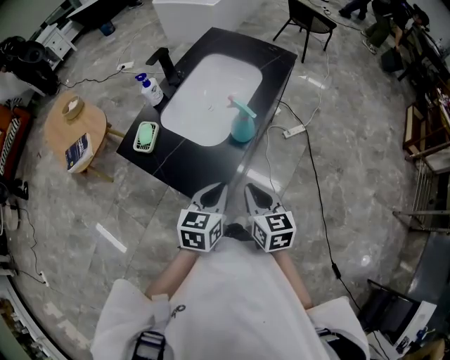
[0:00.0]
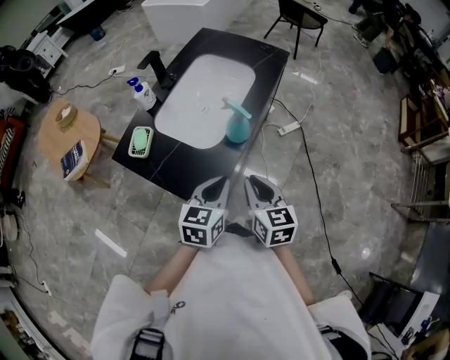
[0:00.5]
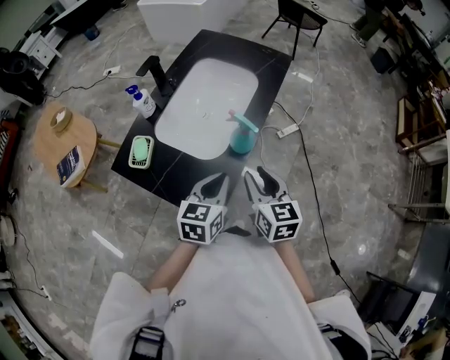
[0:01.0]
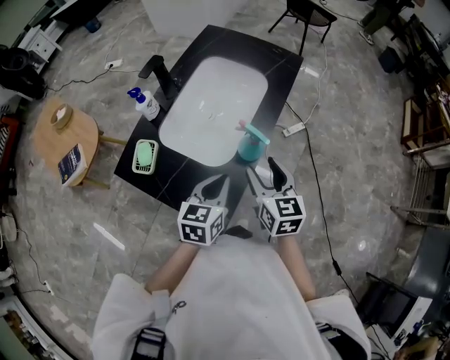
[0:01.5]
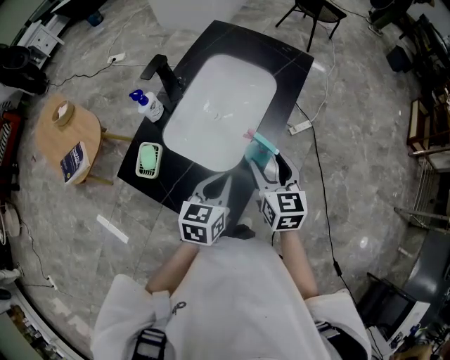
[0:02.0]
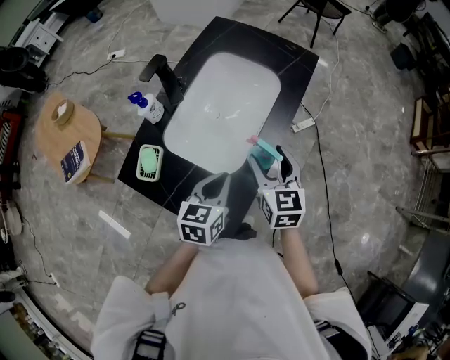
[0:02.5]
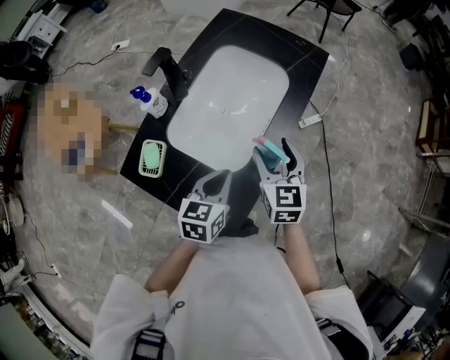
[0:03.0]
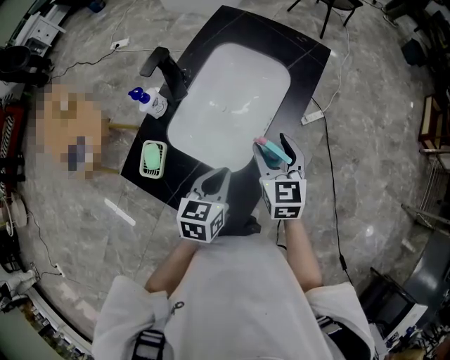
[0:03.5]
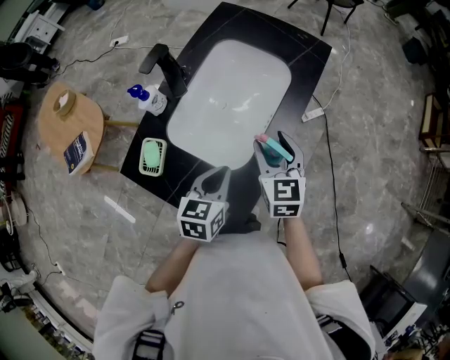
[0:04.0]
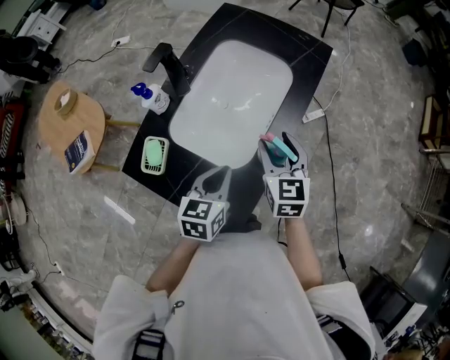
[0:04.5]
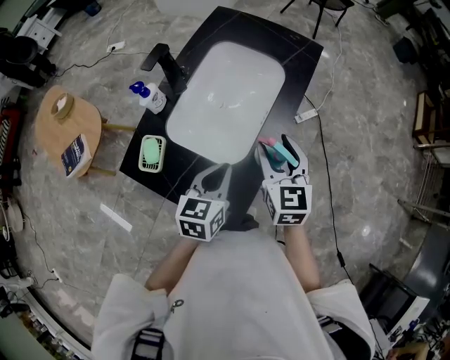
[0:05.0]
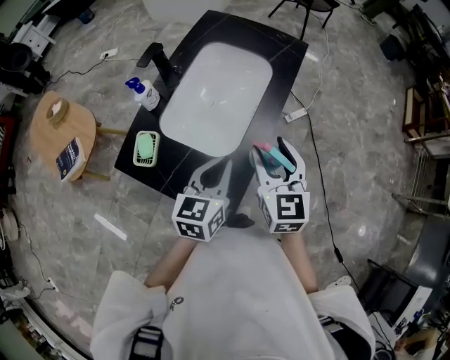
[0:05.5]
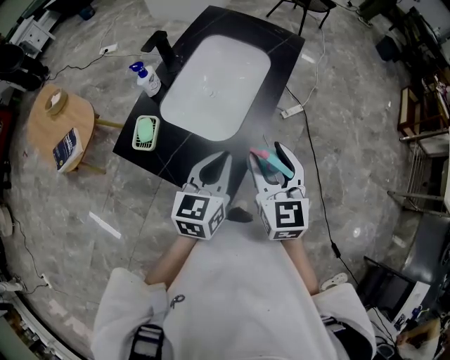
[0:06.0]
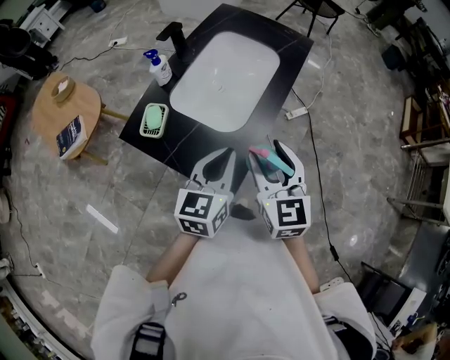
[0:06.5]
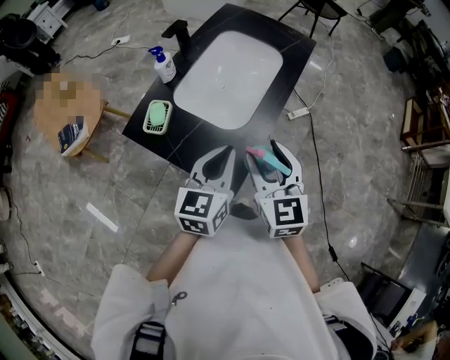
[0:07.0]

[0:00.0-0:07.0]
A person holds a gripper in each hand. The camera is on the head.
0:00.0 to 0:02.0: Both grippers move forward, roughly 15 cm. The right gripper opens up.
0:02.0 to 0:03.5: The right gripper goes roughly 5 cm forward.
0:03.5 to 0:05.0: The right gripper shifts by roughly 5 cm.
0:05.0 to 0:07.0: The left gripper goes some 15 cm backward and upward; the right gripper goes approximately 15 cm backward.

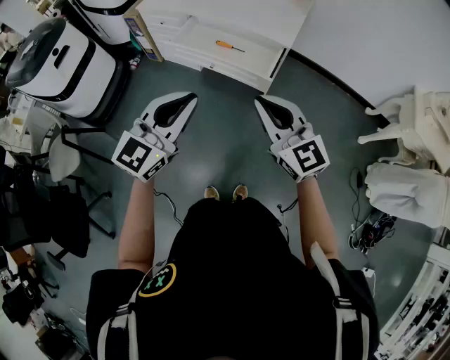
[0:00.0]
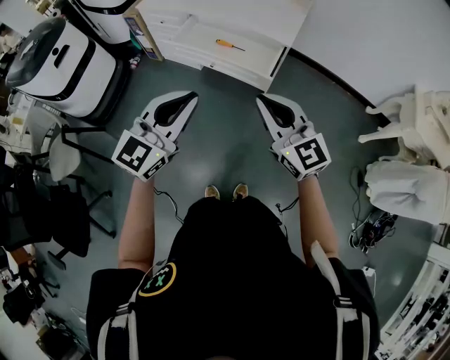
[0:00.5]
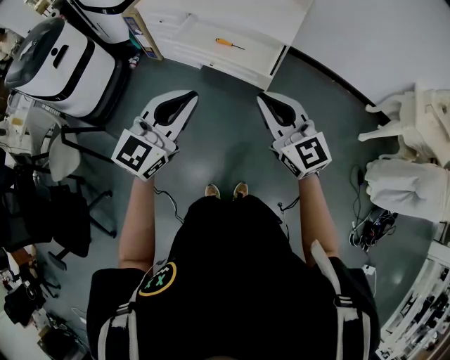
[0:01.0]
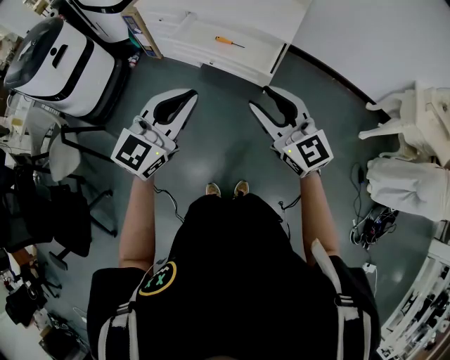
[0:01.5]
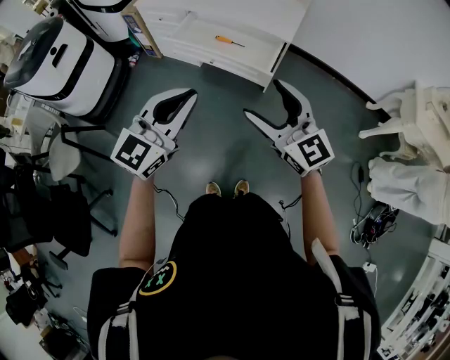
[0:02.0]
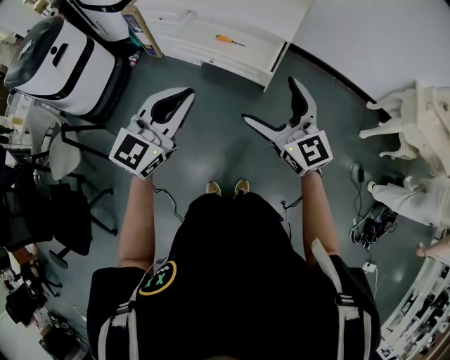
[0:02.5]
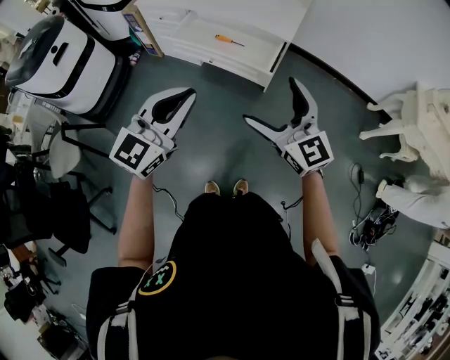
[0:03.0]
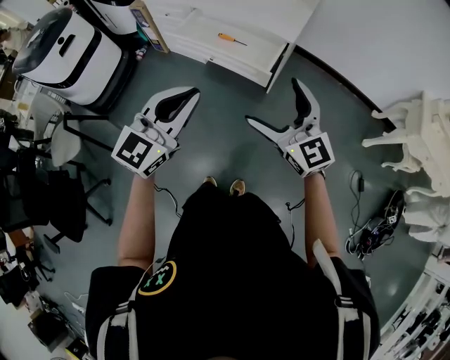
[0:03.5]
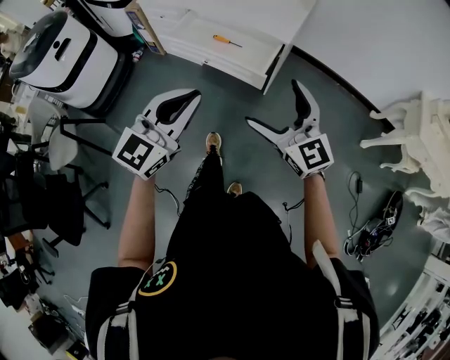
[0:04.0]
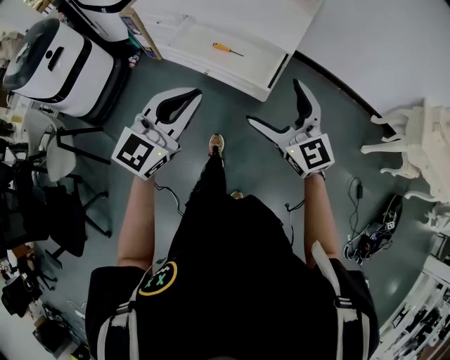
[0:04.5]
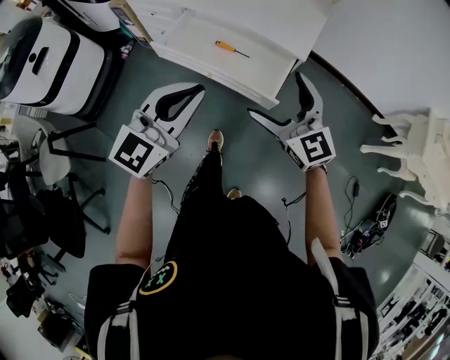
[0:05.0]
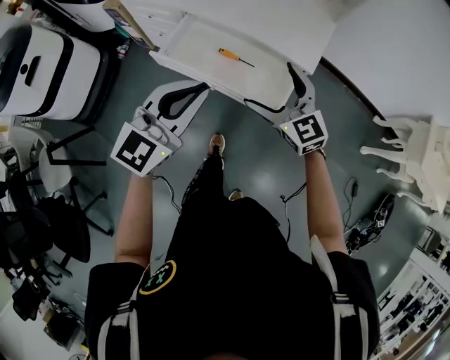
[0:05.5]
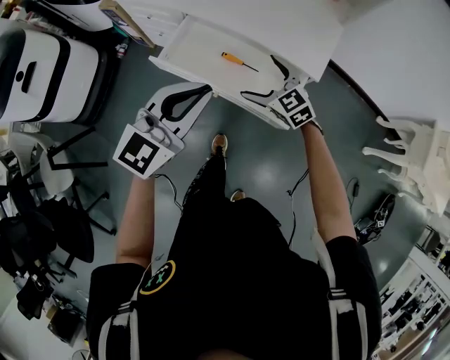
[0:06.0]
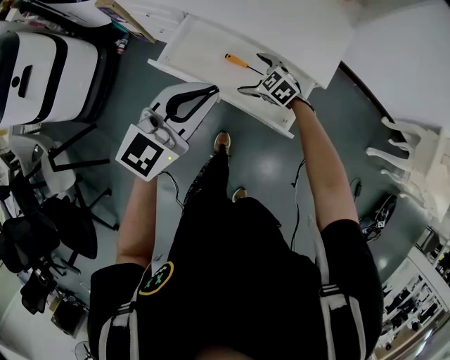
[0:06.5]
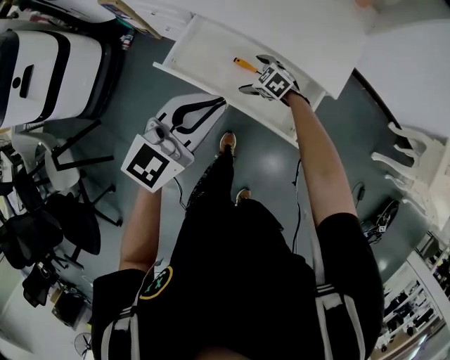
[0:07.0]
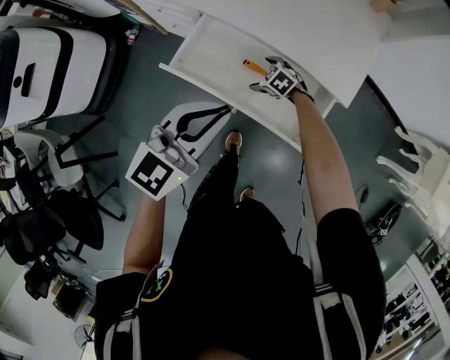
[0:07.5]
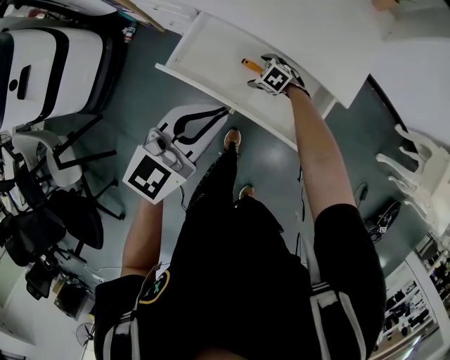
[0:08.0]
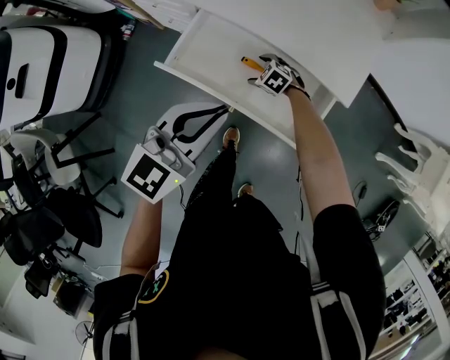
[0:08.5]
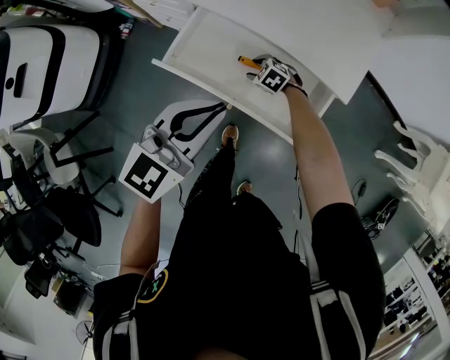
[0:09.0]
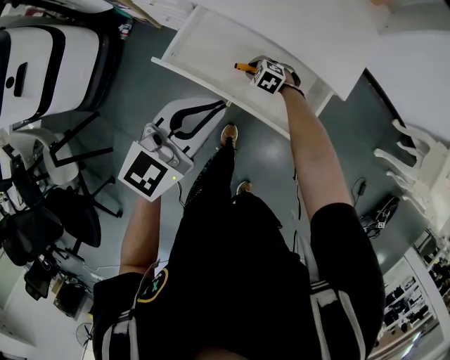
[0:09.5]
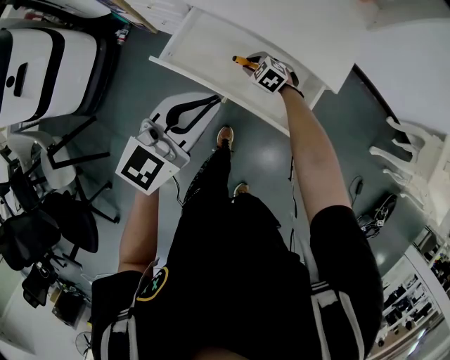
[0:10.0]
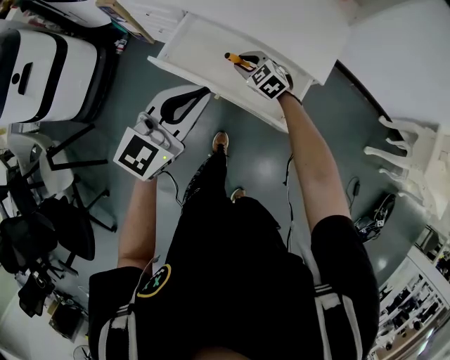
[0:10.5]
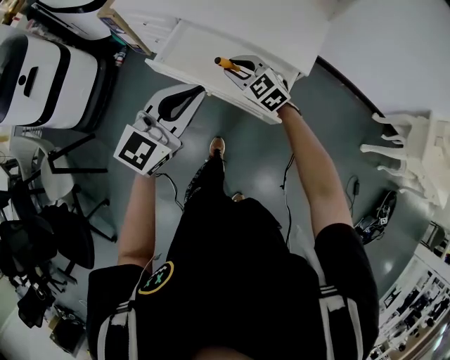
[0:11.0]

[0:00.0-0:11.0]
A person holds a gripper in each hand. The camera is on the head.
0:00.0 to 0:02.0: The right gripper opens.
0:02.0 to 0:03.5: The grippers both shift to the right by roughly 5 cm.
0:03.5 to 0:05.5: The grippers both shift forward by roughly 35 cm.
0:05.5 to 0:07.5: The left gripper is displaced forward and downward by approximately 15 cm; the right gripper is displaced downward and forward by approximately 40 cm, and tips its fingers downward by approximately 50 degrees.
0:07.5 to 0:09.0: The right gripper closes up.
0:09.0 to 0:11.0: The left gripper shifts roughly 15 cm backward and upward; the right gripper shifts roughly 30 cm upward and backward, and tilts its fingers roughly 30 degrees upward.

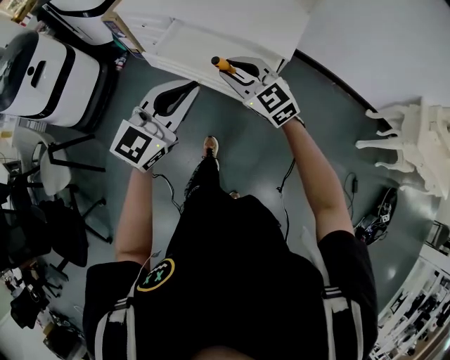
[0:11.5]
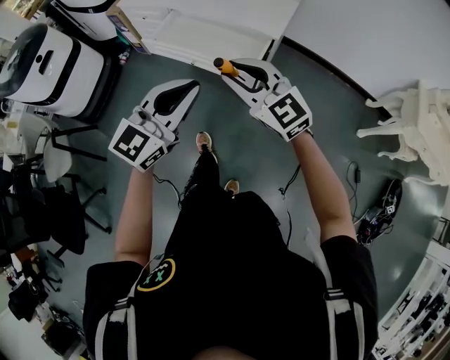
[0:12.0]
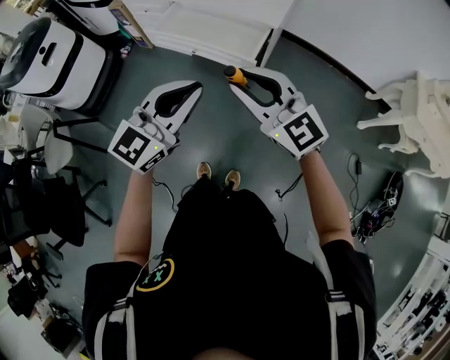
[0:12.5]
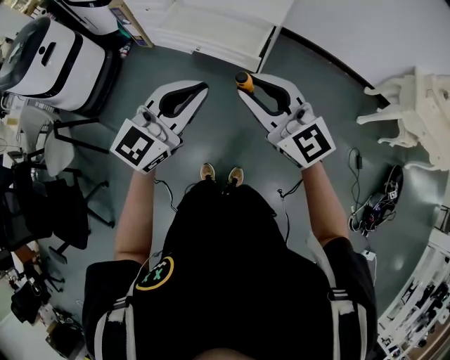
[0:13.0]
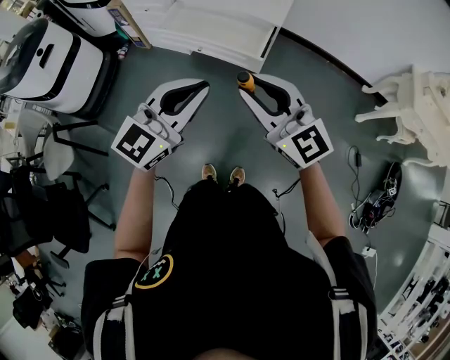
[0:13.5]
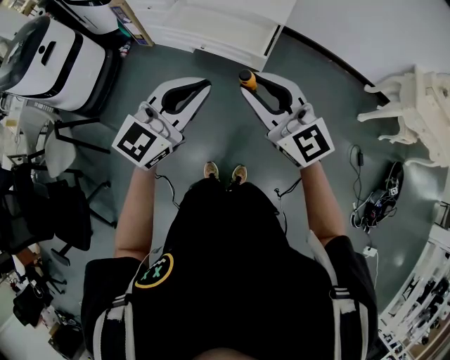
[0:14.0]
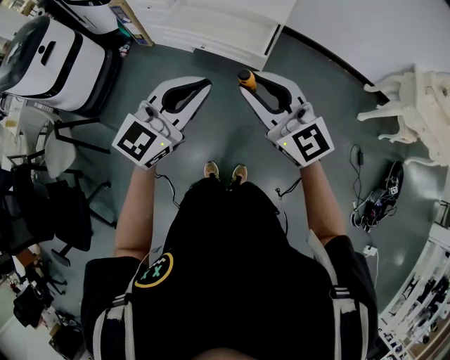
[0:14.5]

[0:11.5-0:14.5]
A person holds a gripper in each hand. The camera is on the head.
0:11.5 to 0:13.0: Both grippers travel together backward, roughly 25 cm.
0:13.0 to 0:14.5: The grippers make only small movements.

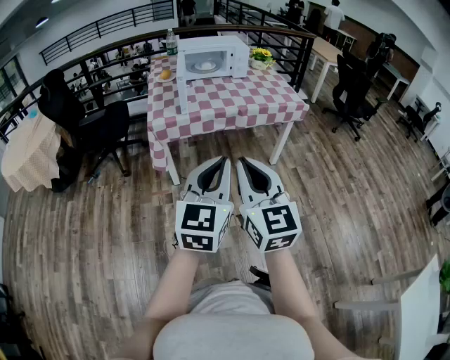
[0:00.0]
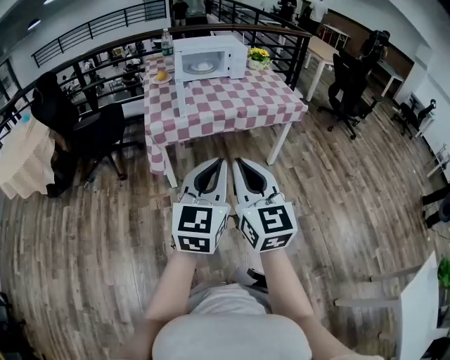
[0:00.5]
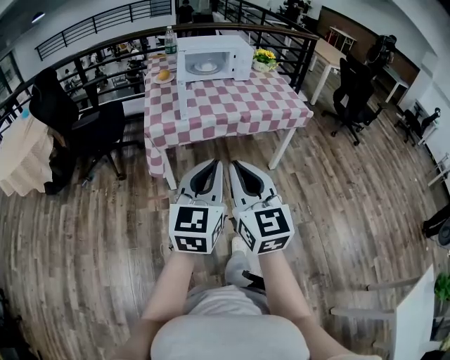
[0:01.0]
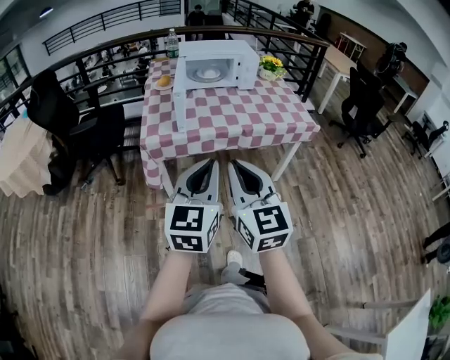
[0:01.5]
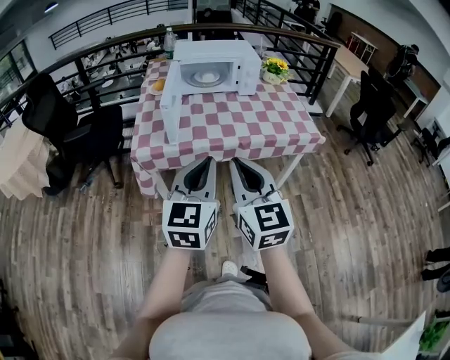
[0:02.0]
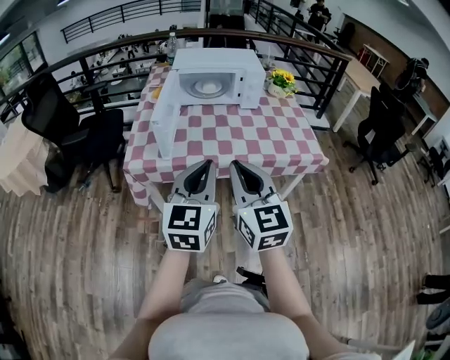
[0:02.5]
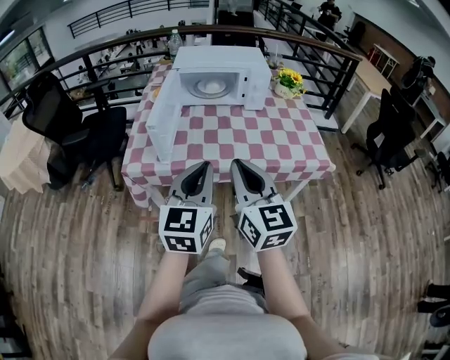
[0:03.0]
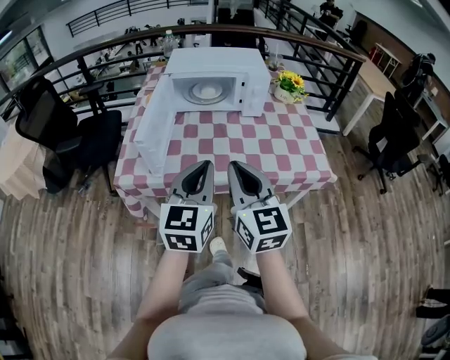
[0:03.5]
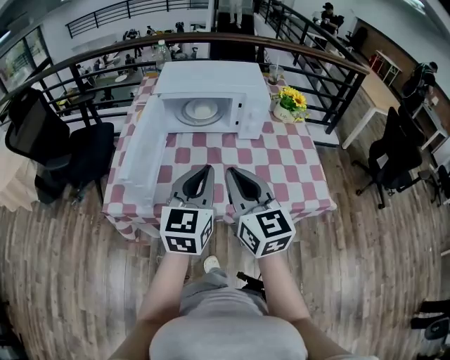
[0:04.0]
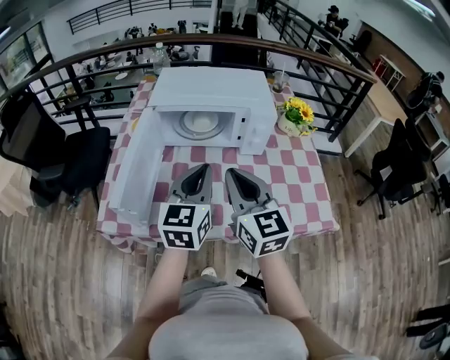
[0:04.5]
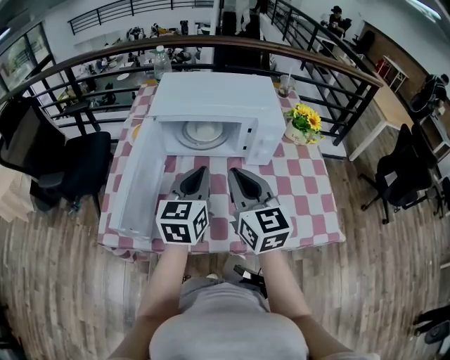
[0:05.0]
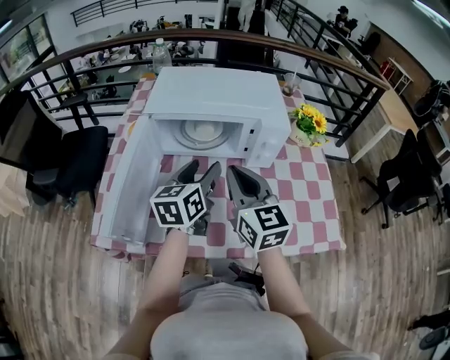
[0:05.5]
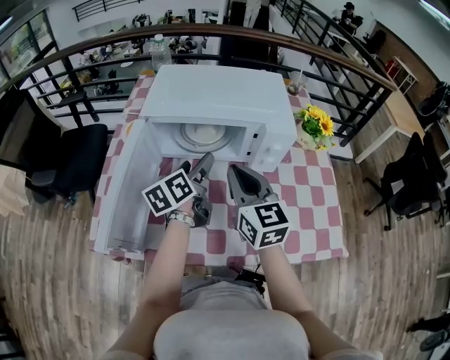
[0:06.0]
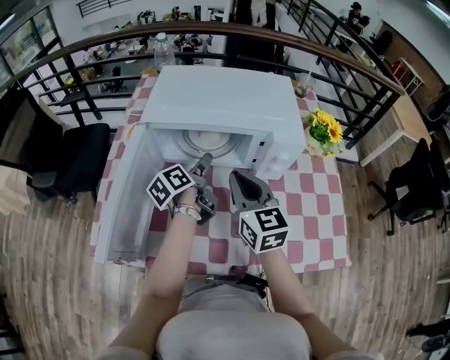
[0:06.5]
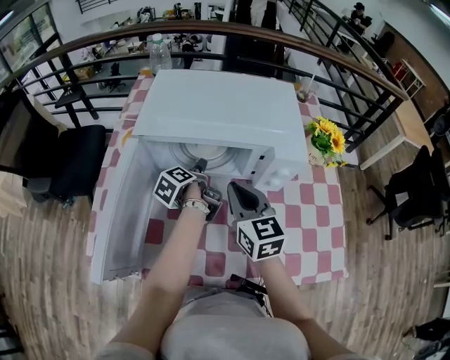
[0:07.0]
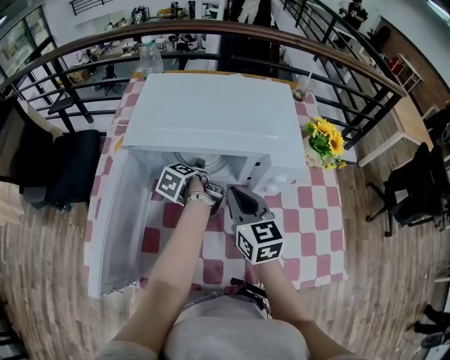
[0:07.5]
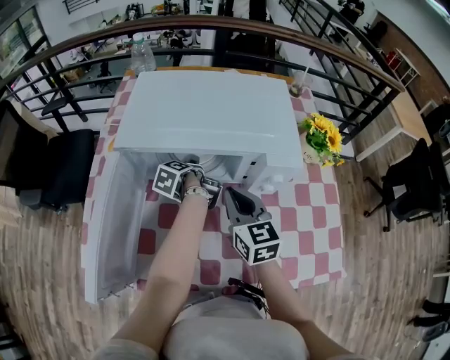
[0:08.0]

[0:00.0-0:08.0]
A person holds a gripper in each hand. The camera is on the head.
0:00.0 to 0:02.0: The grippers both shift forward by about 30 cm.
0:02.0 to 0:04.0: Both grippers move forward, approximately 30 cm.
0:04.0 to 0:06.0: The right gripper moves forward, approximately 25 cm; the left gripper heads forward and downward, covering some 30 cm, rotates around the line of its fingers by approximately 40 degrees, counterclockwise from behind, and opens up.
0:06.0 to 0:08.0: The right gripper heads downward and forward, covering about 10 cm. Meanwhile the left gripper is displaced downward and forward by some 20 cm, and tilts its fingers about 30 degrees downward.
